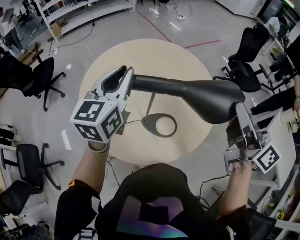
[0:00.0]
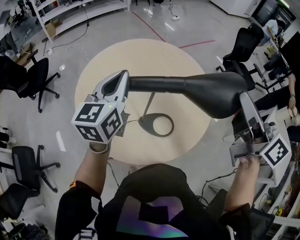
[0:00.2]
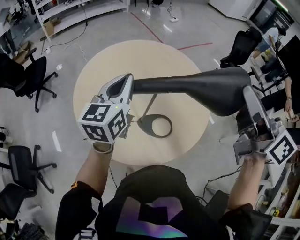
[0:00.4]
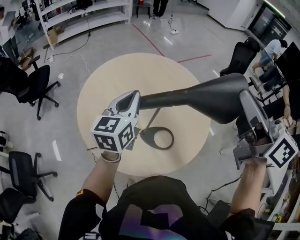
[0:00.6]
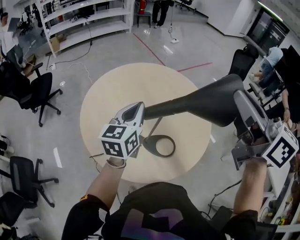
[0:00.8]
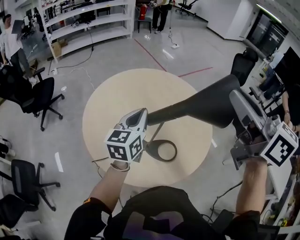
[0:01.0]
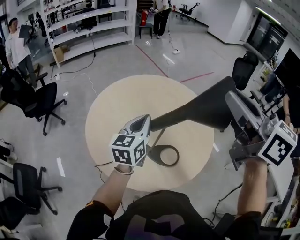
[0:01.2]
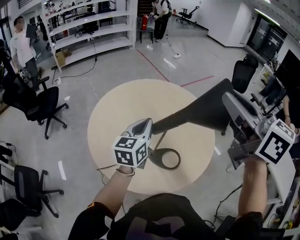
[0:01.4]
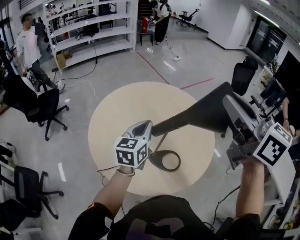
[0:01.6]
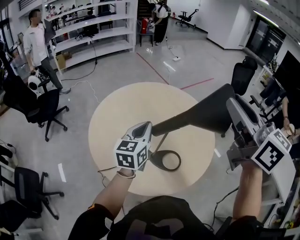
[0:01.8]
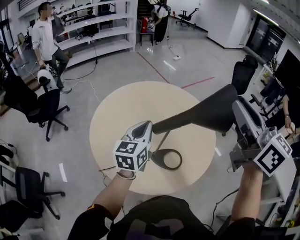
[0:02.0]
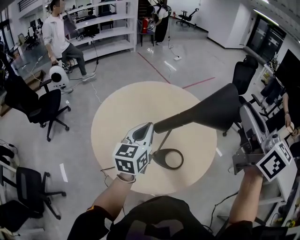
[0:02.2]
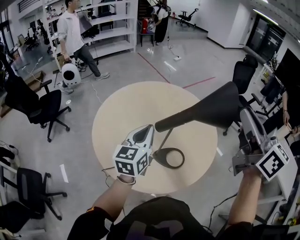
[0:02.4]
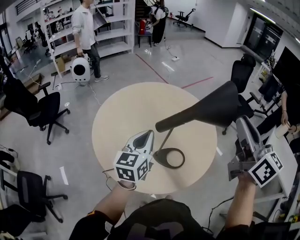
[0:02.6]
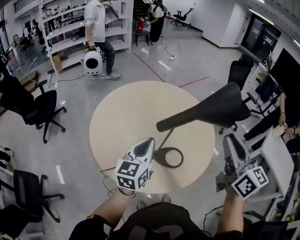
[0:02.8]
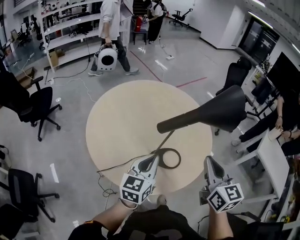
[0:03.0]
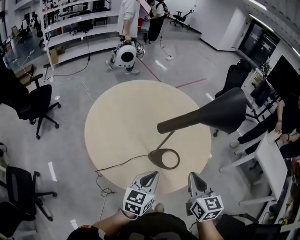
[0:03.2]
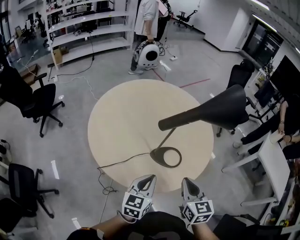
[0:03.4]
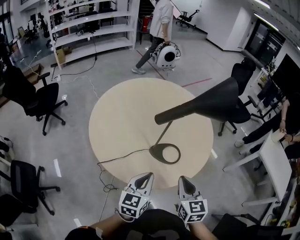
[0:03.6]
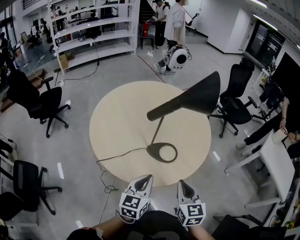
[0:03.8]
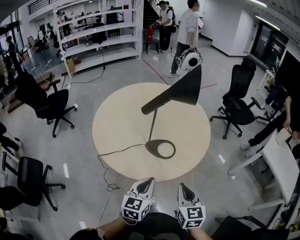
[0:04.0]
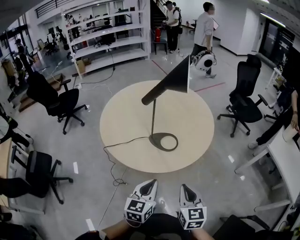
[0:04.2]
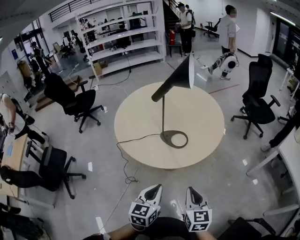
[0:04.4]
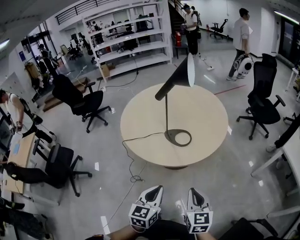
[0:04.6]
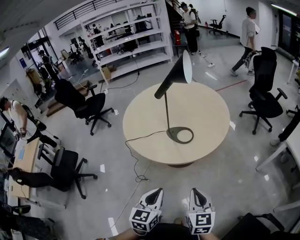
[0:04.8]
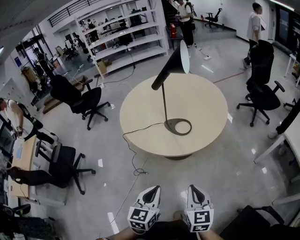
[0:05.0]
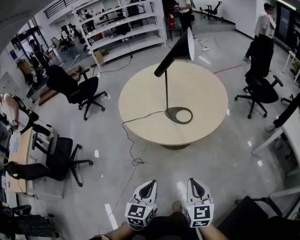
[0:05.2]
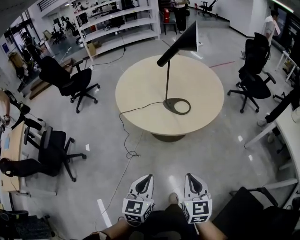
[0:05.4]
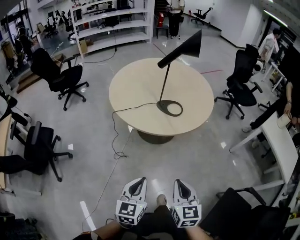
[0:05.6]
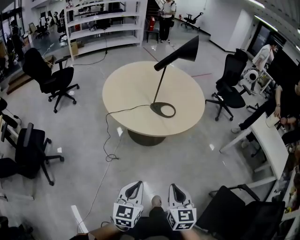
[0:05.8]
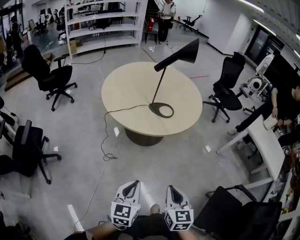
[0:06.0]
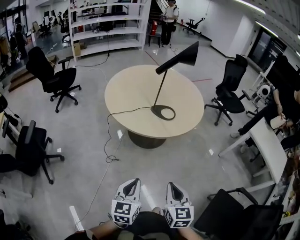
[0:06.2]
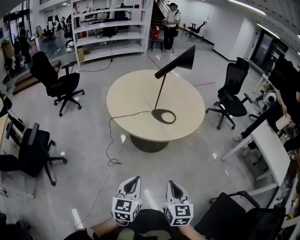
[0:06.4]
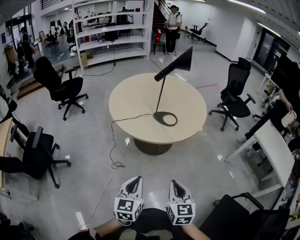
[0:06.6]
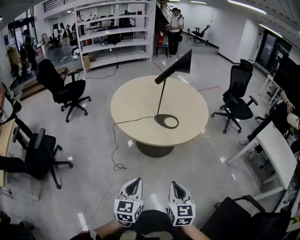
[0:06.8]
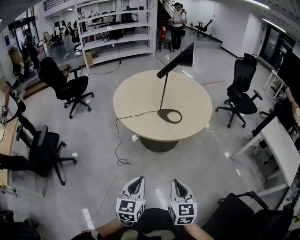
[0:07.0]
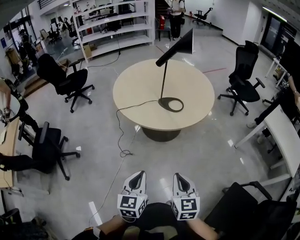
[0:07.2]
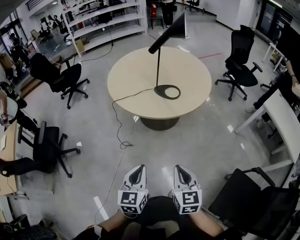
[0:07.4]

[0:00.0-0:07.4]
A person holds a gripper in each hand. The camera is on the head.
0.0 to 1.4 s: The right gripper heads upward and to the left, covering some 20 cm, and swivels roughly 30 degrees. Meanwhile the left gripper goes some 5 cm downward.
1.4 to 3.0 s: The left gripper goes approximately 15 cm backward and downward, while the right gripper goes about 25 cm downward and backward, changes its angle by some 30 degrees, and closes its fingers.
3.0 to 4.4 s: The left gripper is displaced backward and to the right by roughly 40 cm, and turns by roughly 20 degrees; the right gripper shifts some 35 cm backward, to the right and downward.
4.4 to 6.0 s: Both grippers move backward and to the left, about 30 cm.
6.0 to 7.4 s: The two grippers go roughly 5 cm to the right.

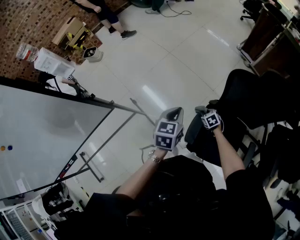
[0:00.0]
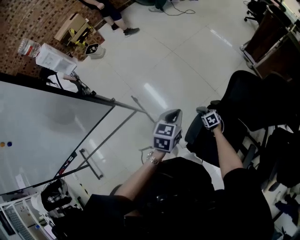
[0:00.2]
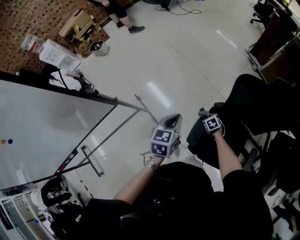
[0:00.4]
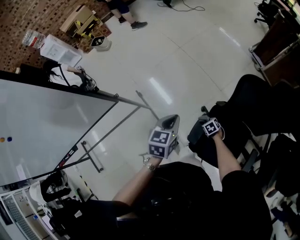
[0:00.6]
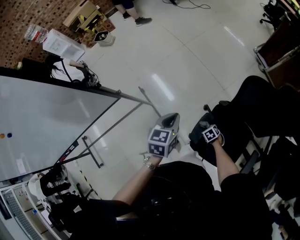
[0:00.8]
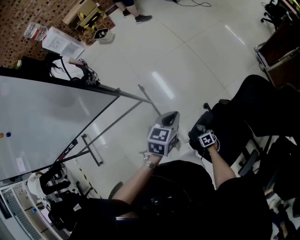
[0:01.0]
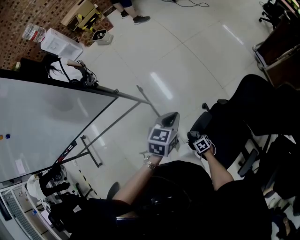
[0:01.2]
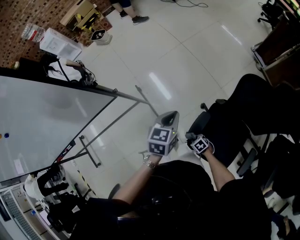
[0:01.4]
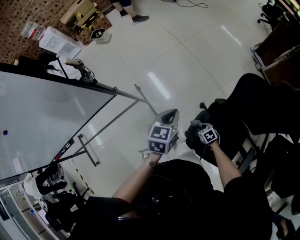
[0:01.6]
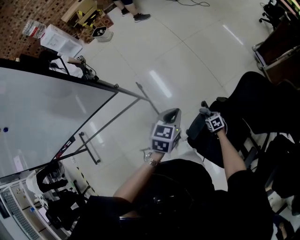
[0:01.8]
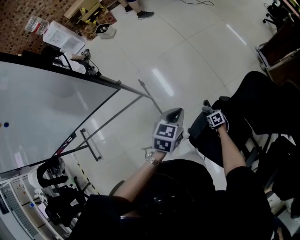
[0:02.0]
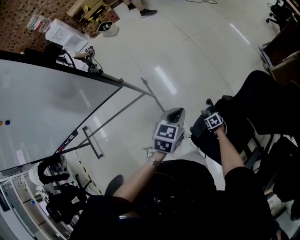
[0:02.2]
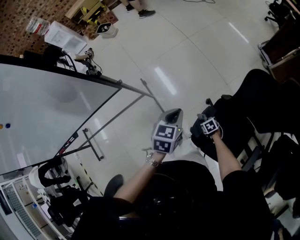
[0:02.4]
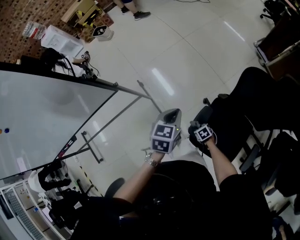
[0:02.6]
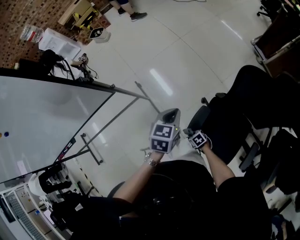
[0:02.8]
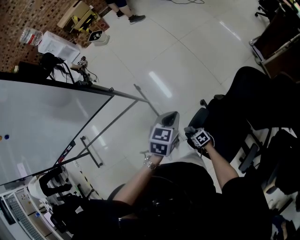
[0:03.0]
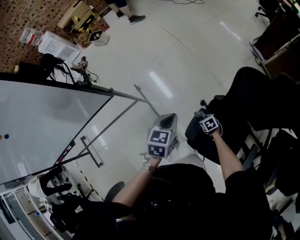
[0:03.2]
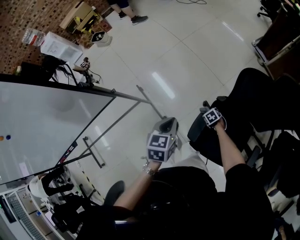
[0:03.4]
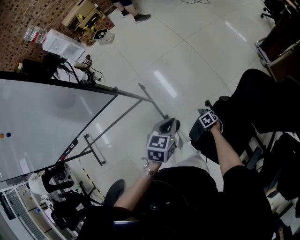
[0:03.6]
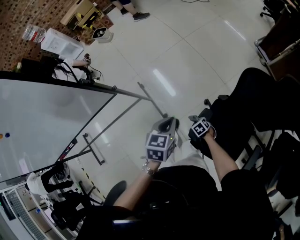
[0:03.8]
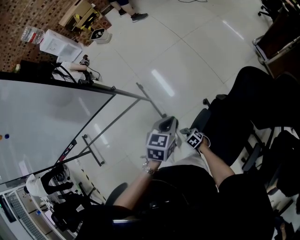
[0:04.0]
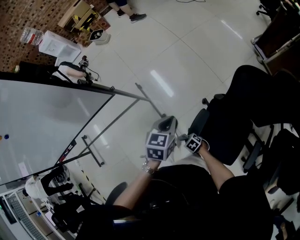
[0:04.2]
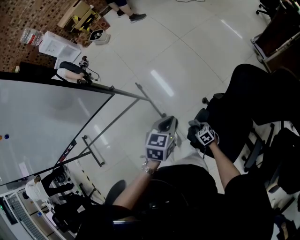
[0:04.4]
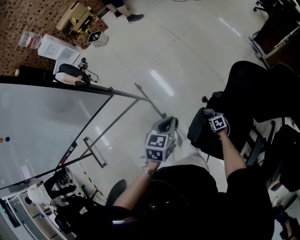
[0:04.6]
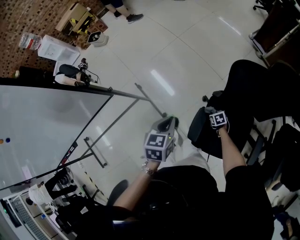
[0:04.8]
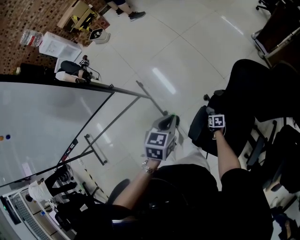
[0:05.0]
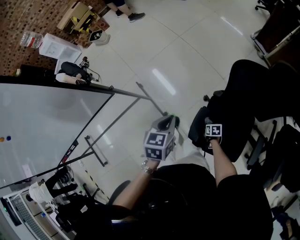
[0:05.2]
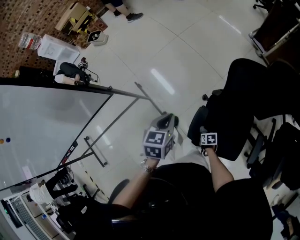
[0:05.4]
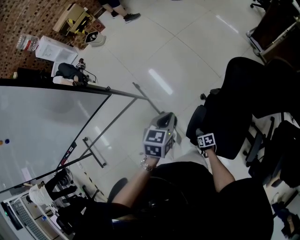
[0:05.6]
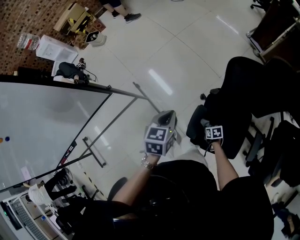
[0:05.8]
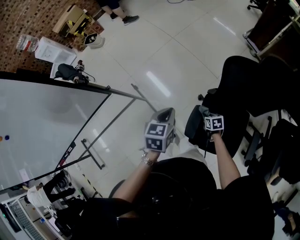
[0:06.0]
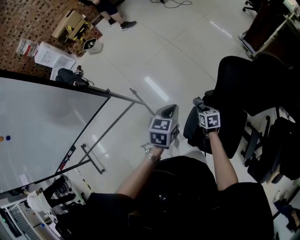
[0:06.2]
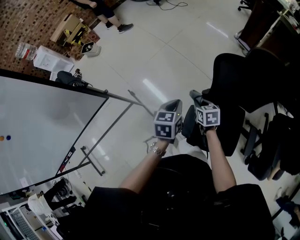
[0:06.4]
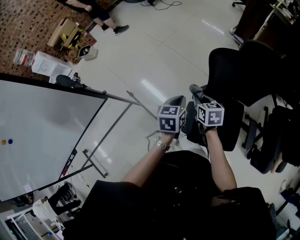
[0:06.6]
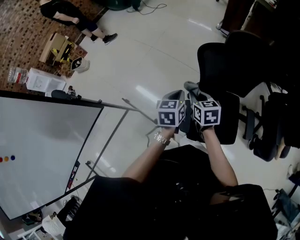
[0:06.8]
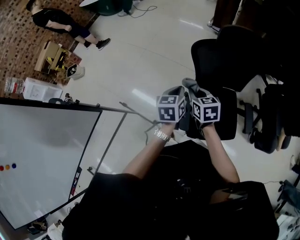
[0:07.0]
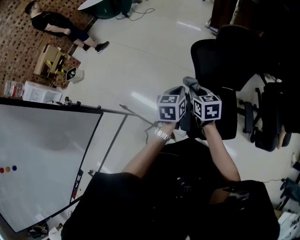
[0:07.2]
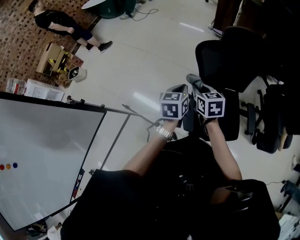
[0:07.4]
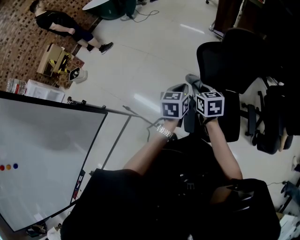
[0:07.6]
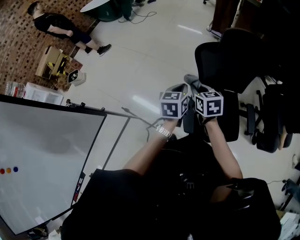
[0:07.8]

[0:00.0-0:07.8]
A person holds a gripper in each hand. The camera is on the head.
0.0 to 1.6 s: The left gripper changes place by some 5 cm.
1.6 to 3.2 s: The right gripper goes left and right, approximately 15 cm each way, reversing 2 times.
4.6 to 6.2 s: The right gripper goes about 15 cm upward, and changes its angle by approximately 20 degrees.
6.2 to 7.8 s: The left gripper shifts about 10 cm to the right, while the right gripper moves upward, roughly 20 cm, and turns by roughly 30 degrees.

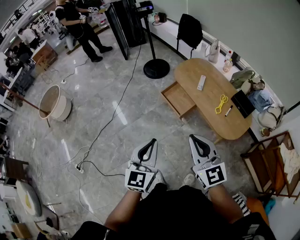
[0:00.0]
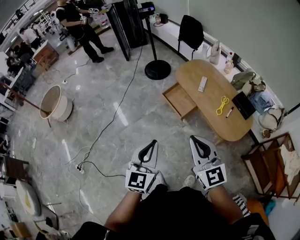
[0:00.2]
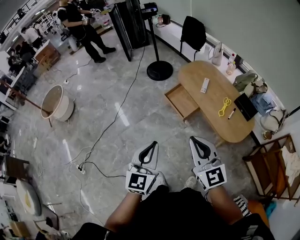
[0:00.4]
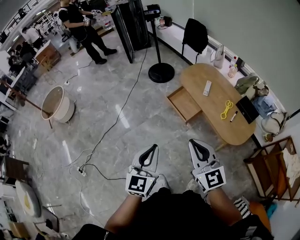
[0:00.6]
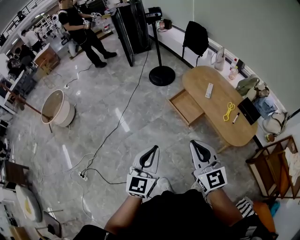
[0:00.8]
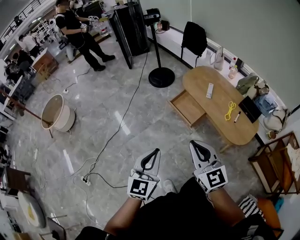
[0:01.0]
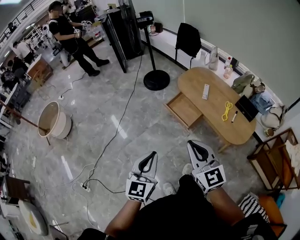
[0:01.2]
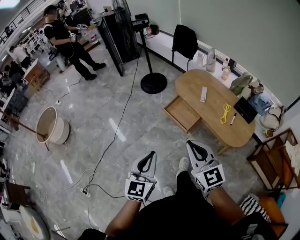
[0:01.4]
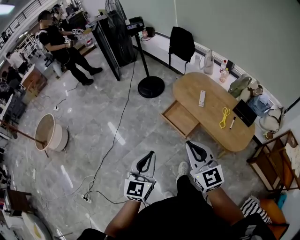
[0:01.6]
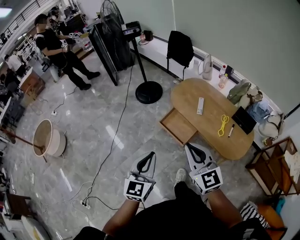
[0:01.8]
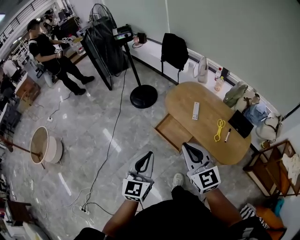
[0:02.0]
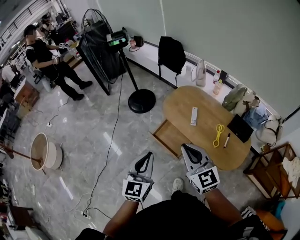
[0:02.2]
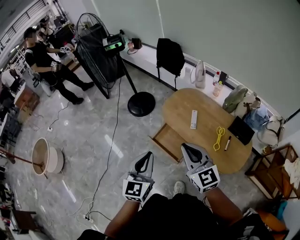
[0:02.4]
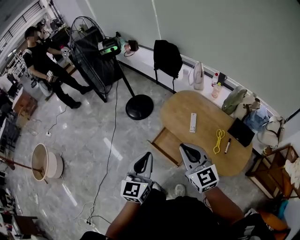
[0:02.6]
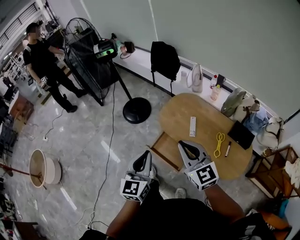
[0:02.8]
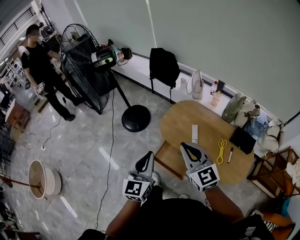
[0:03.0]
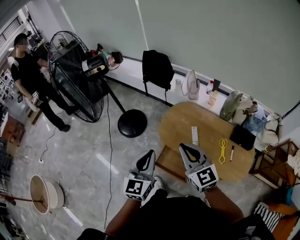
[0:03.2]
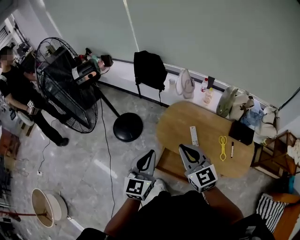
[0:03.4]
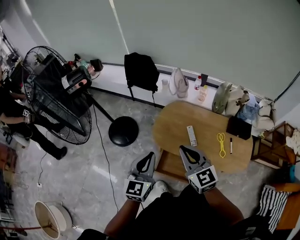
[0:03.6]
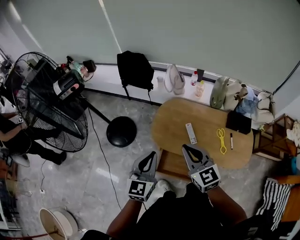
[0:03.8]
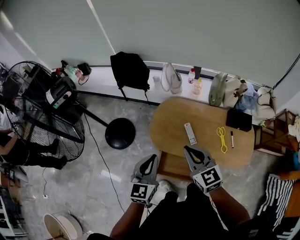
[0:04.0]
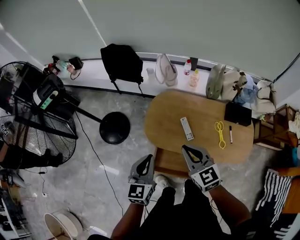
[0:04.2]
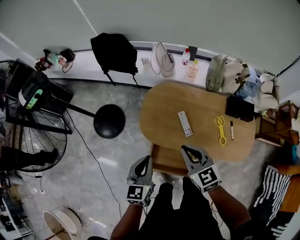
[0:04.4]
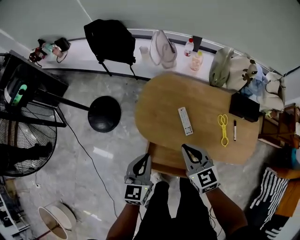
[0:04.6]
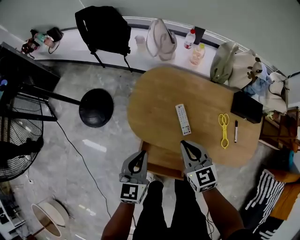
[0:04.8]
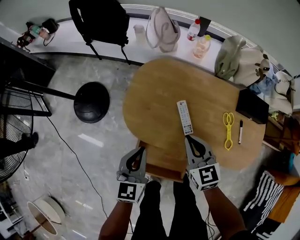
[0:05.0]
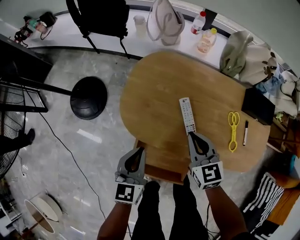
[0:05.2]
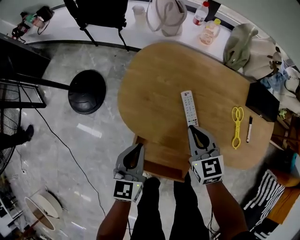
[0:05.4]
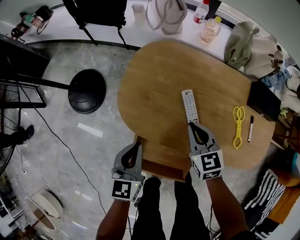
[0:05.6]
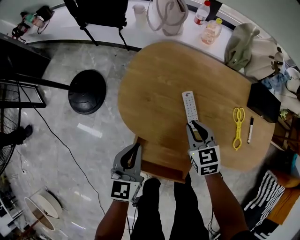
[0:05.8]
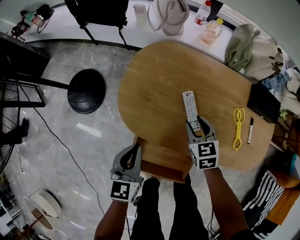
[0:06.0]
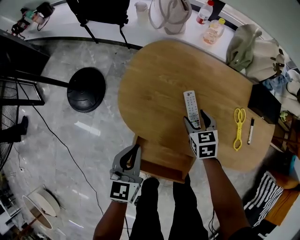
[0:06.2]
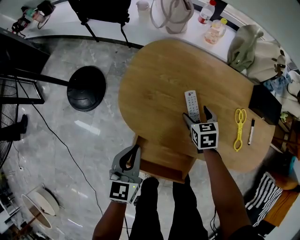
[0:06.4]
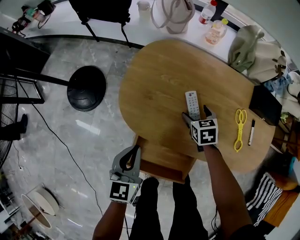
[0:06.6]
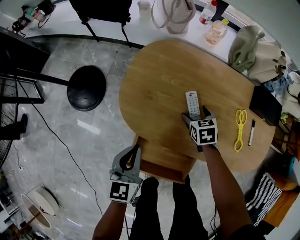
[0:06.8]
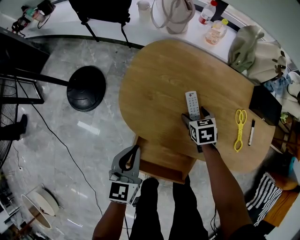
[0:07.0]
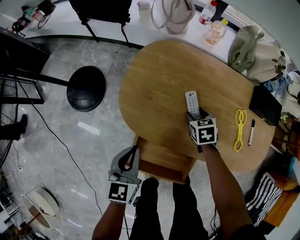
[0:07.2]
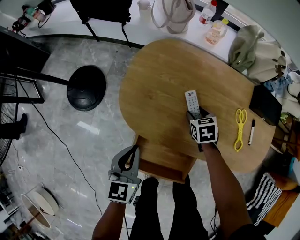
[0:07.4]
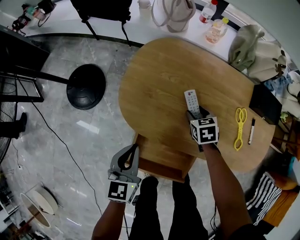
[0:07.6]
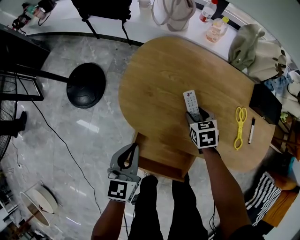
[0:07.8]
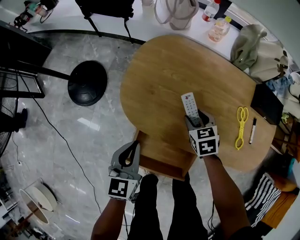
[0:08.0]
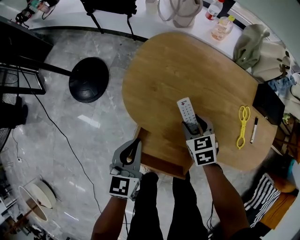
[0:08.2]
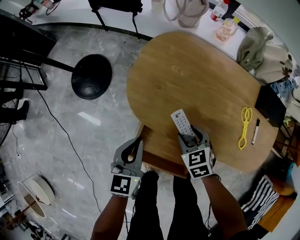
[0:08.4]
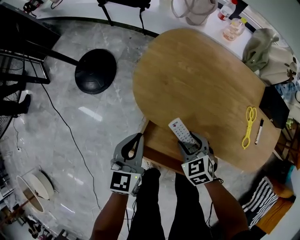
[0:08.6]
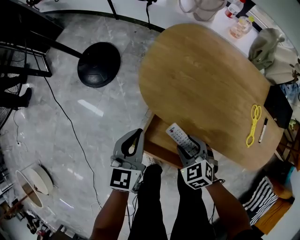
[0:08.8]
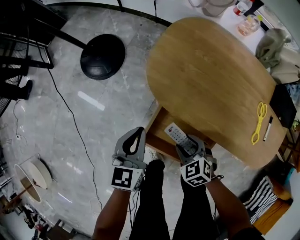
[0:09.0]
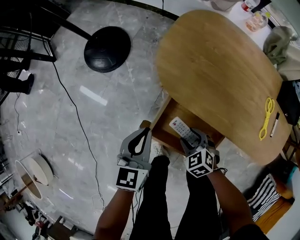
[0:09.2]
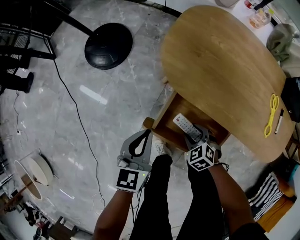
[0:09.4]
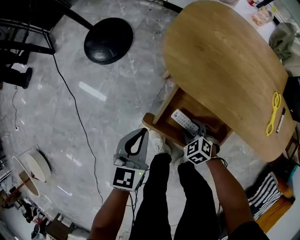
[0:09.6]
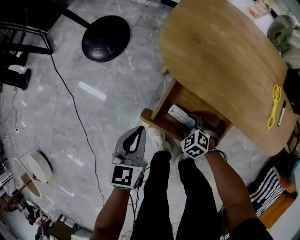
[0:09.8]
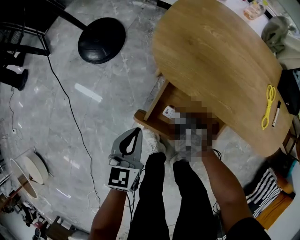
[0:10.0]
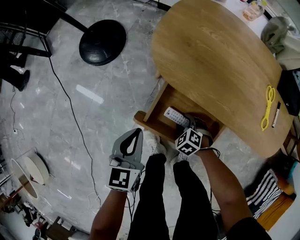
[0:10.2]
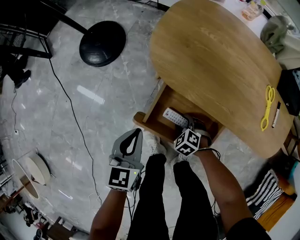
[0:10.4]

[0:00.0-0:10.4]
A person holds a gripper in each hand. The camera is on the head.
0.0 to 1.4 s: The grippers both shift to the left and forward by some 15 cm.
1.4 to 3.0 s: Both grippers are carried forward, roughly 40 cm.
3.0 to 4.4 s: The left gripper moves forward and downward, some 25 cm, and rotates about 30 degrees, while the right gripper moves downward and forward, approximately 25 cm, and turns by about 30 degrees.
4.4 to 6.0 s: The grippers both shift downward by some 30 cm. The right gripper swivels roughly 20 degrees, and opens.
6.0 to 7.4 s: The right gripper heads downward, covering about 10 cm, and opens, then closes once more.
7.4 to 9.0 s: The right gripper shifts some 30 cm backward and to the left, and turns by roughly 40 degrees, while the left gripper is displaced to the left by roughly 5 cm.
9.0 to 10.4 s: The right gripper shifts approximately 15 cm downward; the left gripper goes some 10 cm backward.
